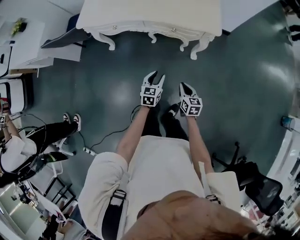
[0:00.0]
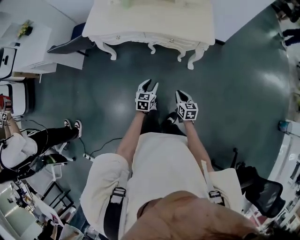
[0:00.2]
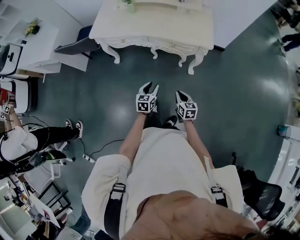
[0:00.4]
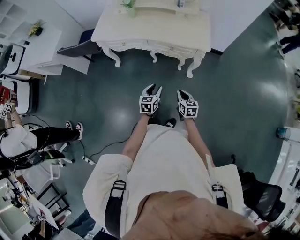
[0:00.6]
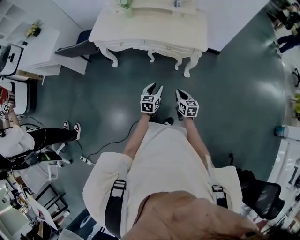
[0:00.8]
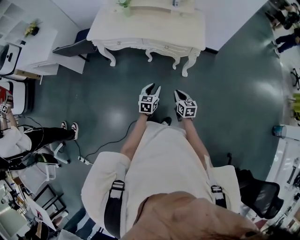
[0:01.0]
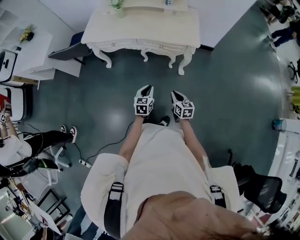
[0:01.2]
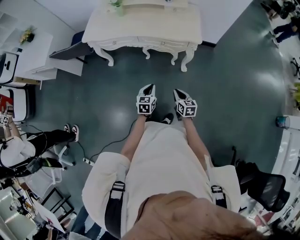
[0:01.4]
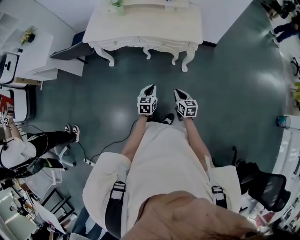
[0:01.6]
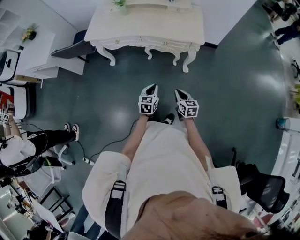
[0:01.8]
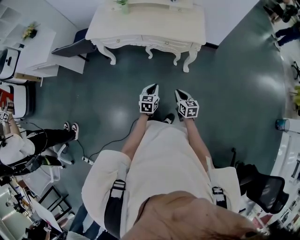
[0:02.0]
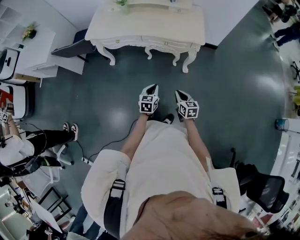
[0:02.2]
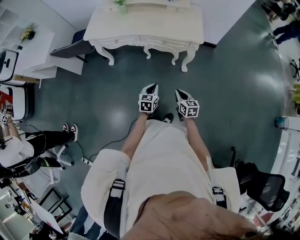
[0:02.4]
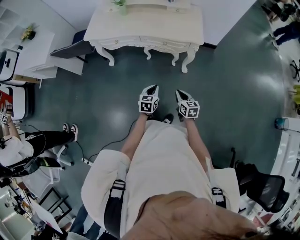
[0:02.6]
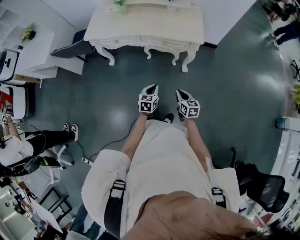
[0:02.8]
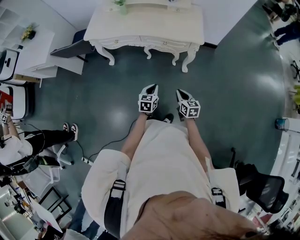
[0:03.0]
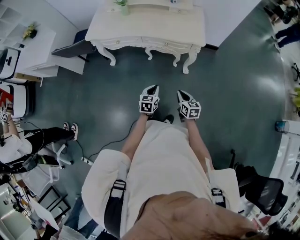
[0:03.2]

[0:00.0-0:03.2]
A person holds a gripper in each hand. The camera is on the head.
0:00.0 to 0:01.6: The grippers both shift upward and backward by roughly 10 cm. The left gripper closes.
0:01.6 to 0:03.2: There are only small adjustments of the grippers.

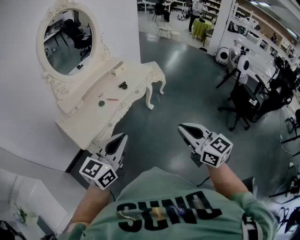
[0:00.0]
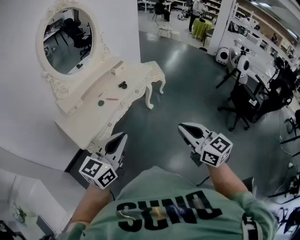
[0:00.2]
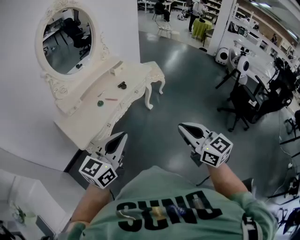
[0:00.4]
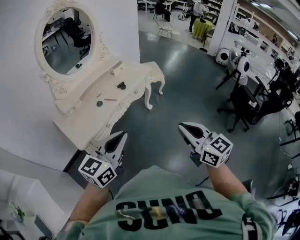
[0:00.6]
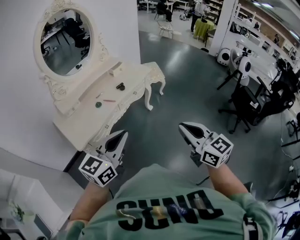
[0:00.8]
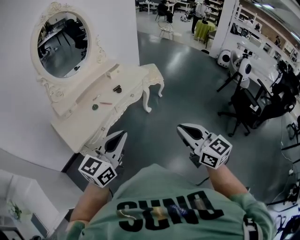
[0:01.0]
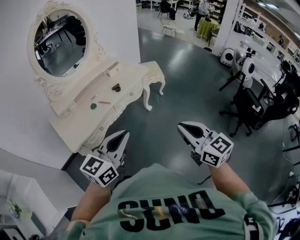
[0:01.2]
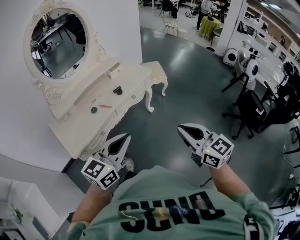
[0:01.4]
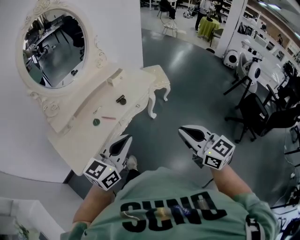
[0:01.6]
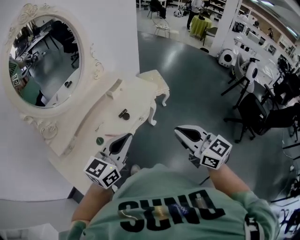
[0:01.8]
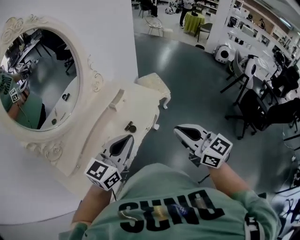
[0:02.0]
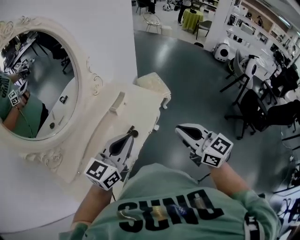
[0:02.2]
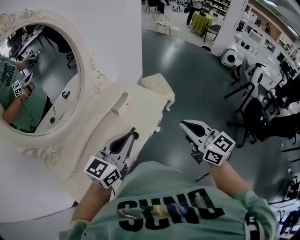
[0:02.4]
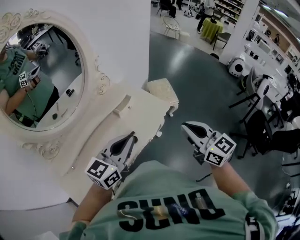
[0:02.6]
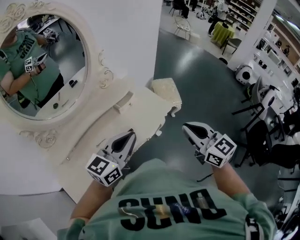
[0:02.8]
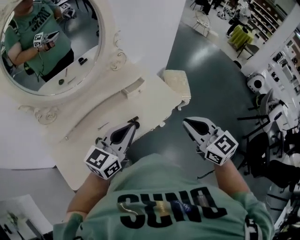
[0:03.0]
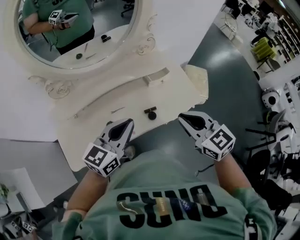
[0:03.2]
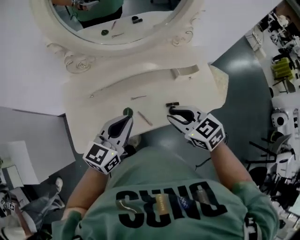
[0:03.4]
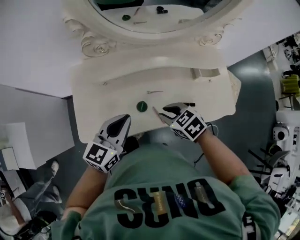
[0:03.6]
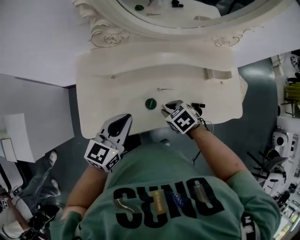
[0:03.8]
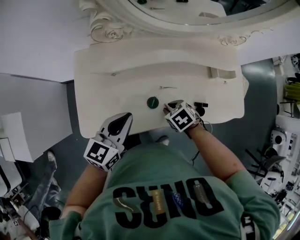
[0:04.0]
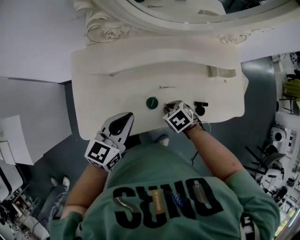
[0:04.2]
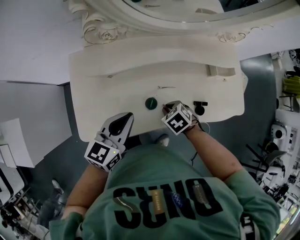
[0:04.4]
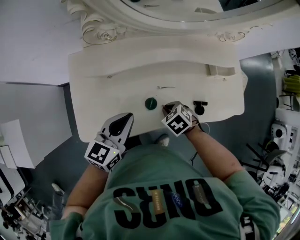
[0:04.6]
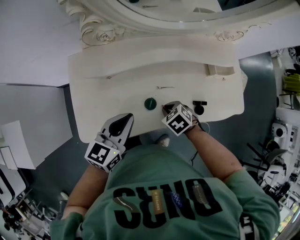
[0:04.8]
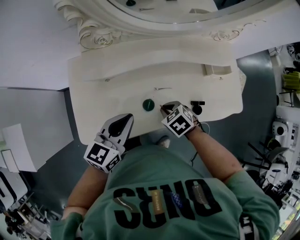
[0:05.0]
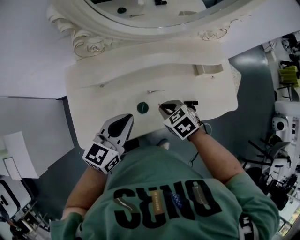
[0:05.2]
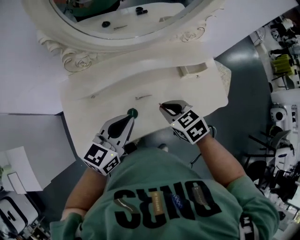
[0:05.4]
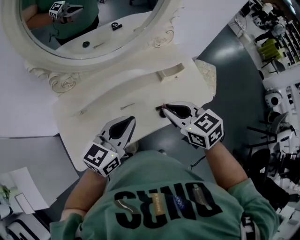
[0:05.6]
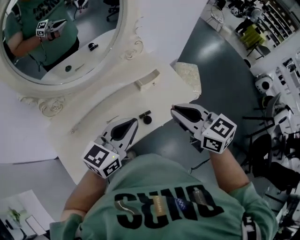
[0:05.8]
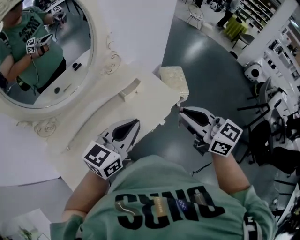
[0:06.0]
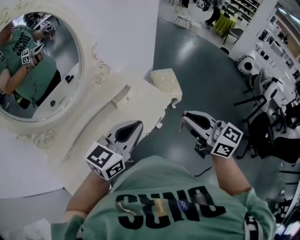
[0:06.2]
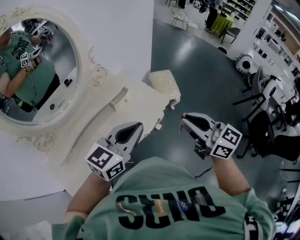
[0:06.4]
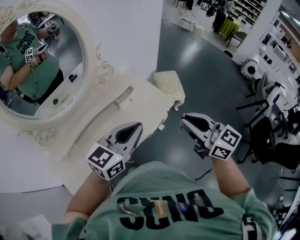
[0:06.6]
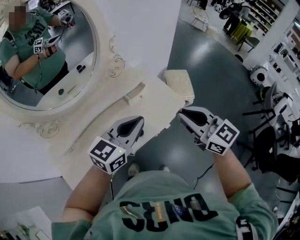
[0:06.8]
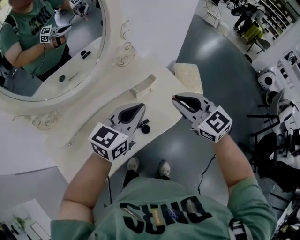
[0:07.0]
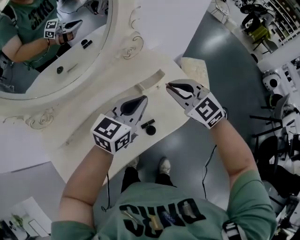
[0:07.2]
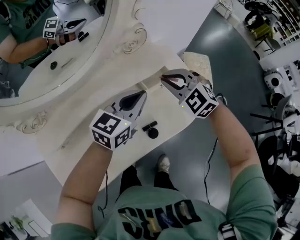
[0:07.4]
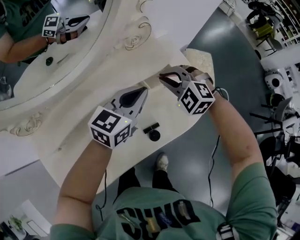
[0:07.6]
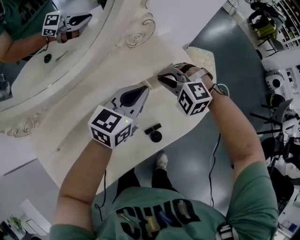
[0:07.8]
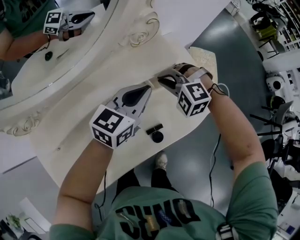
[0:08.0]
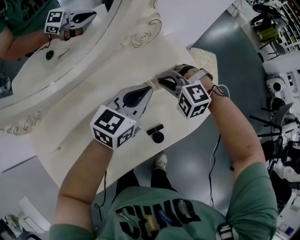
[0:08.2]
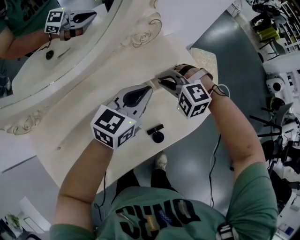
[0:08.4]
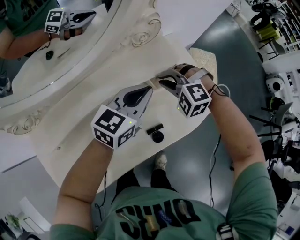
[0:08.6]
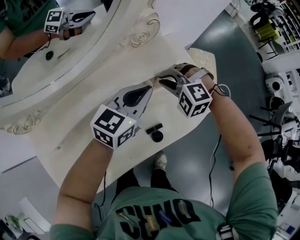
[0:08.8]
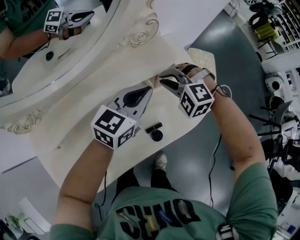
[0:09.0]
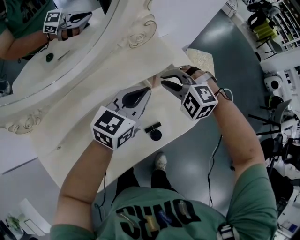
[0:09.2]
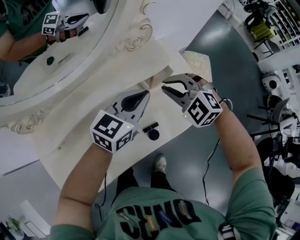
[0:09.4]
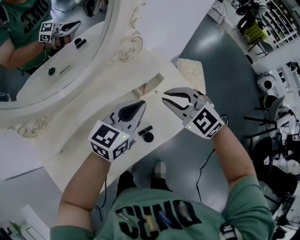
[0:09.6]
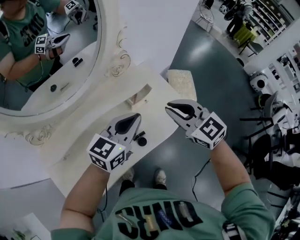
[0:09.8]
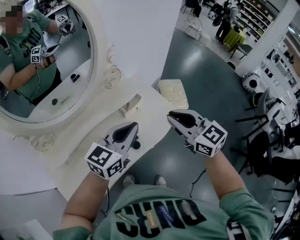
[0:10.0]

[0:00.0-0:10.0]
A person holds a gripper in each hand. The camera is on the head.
0:00.0 to 0:01.4: Both grippers travel together forward and to the right, roughly 15 cm.
0:01.4 to 0:02.8: Both grippers are carried forward, some 40 cm.
0:02.8 to 0:04.2: The right gripper heads downward, covering roughly 40 cm, and angles its fingers downward, by about 60 degrees. The left gripper moves some 40 cm, and changes its angle by approximately 50 degrees.
0:04.2 to 0:05.8: The left gripper shifts by approximately 30 cm, and turns by some 40 degrees. Meanwhile the right gripper goes some 35 cm upward, and tips its fingers upward by approximately 60 degrees.
0:05.8 to 0:07.2: Both grippers travel together forward and downward, roughly 20 cm. The right gripper changes its angle by approximately 30 degrees.
0:07.2 to 0:08.6: The right gripper moves downward and forward, some 15 cm, and twists roughly 40 degrees counterclockwise, seen from behind, while the left gripper shifts about 10 cm downward and forward.
0:08.6 to 0:10.0: The left gripper goes roughly 25 cm upward and backward. Meanwhile the right gripper goes approximately 35 cm upward, backward and to the right, and rotates around the line of its fingers by about 70 degrees, clockwise from behind.

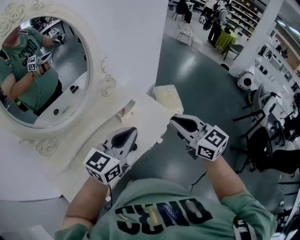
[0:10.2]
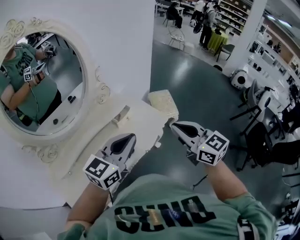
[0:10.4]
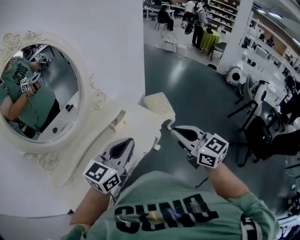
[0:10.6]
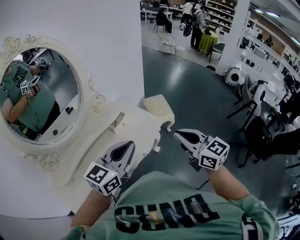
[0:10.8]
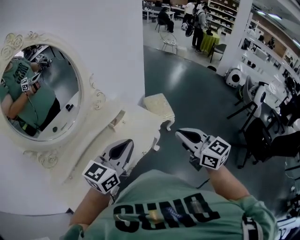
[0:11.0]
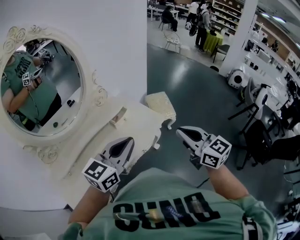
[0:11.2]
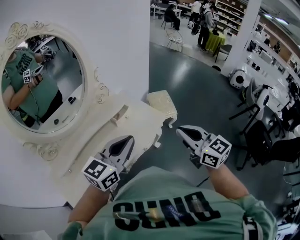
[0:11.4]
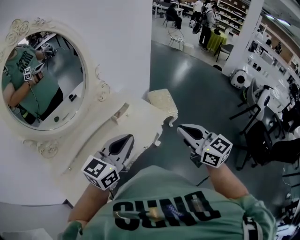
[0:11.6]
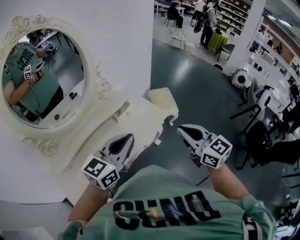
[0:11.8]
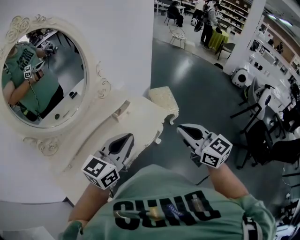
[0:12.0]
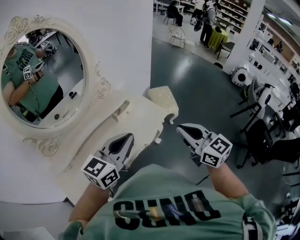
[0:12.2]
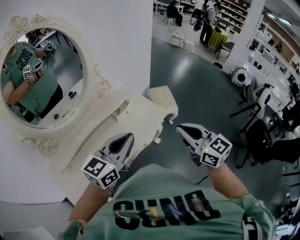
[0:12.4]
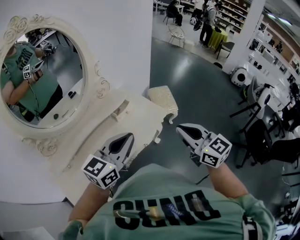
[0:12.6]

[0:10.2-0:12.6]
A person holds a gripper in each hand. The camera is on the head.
0:10.2 to 0:11.4: The right gripper is displaced backward and to the right by approximately 10 cm, while the left gripper moves backward, some 5 cm.
0:11.4 to 0:12.6: The two grippers keep their place.

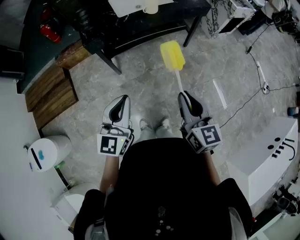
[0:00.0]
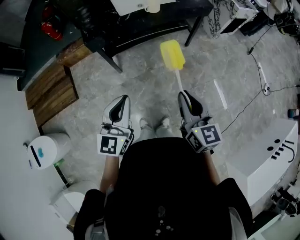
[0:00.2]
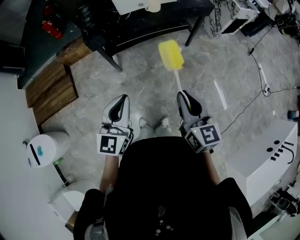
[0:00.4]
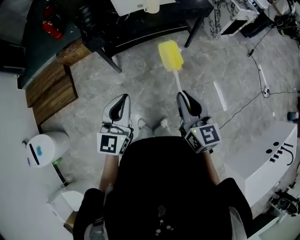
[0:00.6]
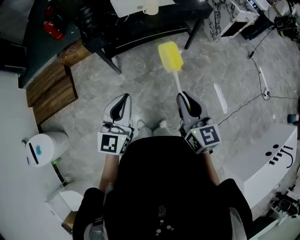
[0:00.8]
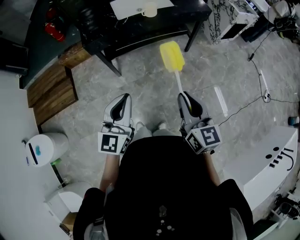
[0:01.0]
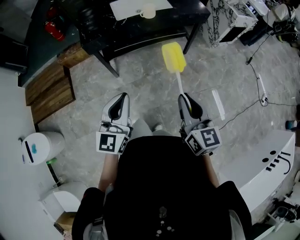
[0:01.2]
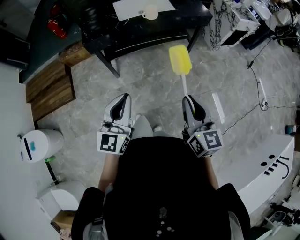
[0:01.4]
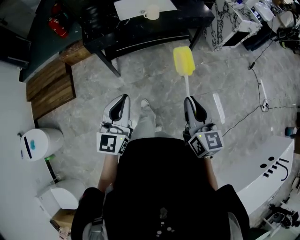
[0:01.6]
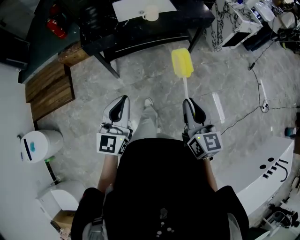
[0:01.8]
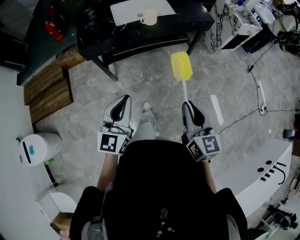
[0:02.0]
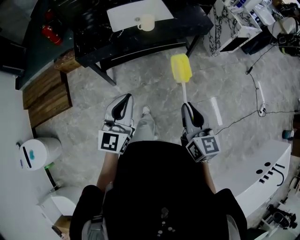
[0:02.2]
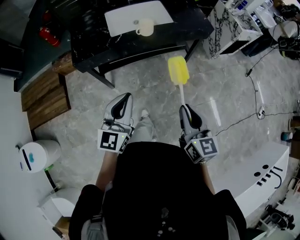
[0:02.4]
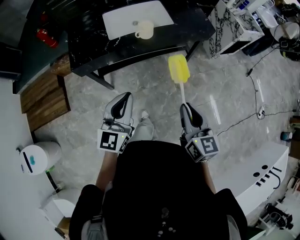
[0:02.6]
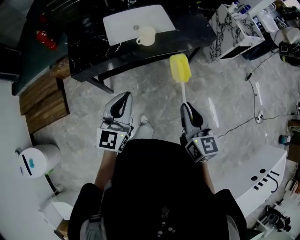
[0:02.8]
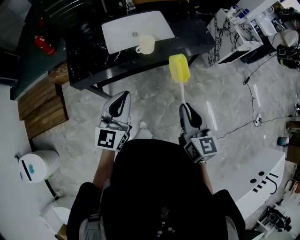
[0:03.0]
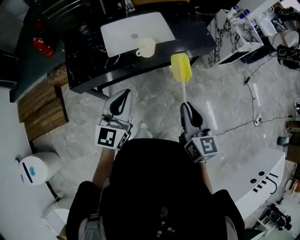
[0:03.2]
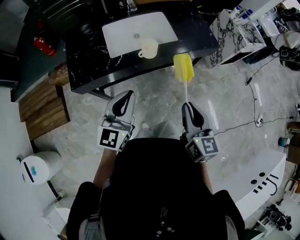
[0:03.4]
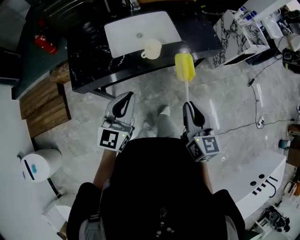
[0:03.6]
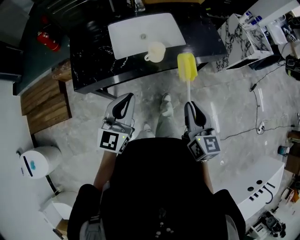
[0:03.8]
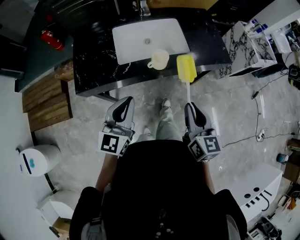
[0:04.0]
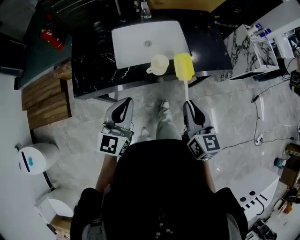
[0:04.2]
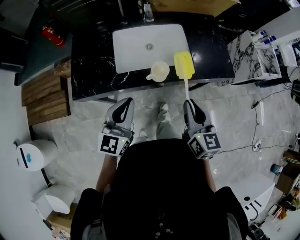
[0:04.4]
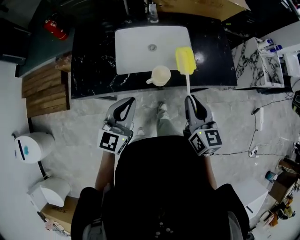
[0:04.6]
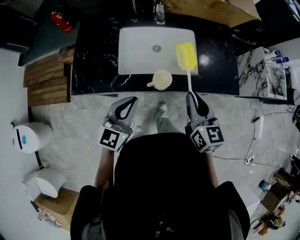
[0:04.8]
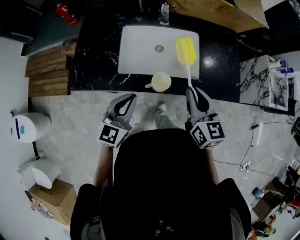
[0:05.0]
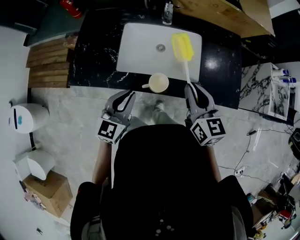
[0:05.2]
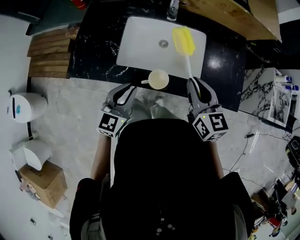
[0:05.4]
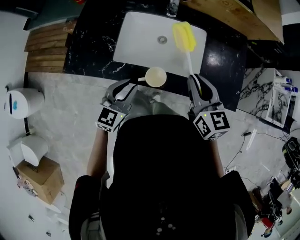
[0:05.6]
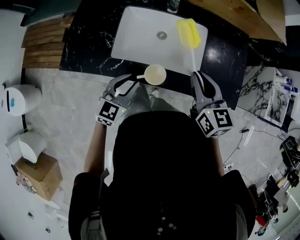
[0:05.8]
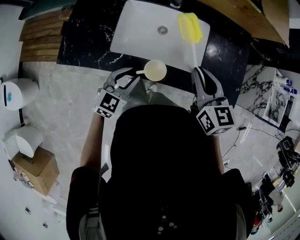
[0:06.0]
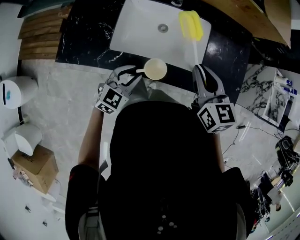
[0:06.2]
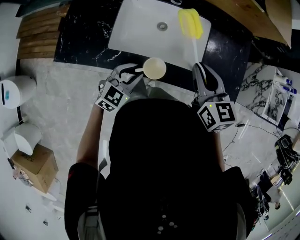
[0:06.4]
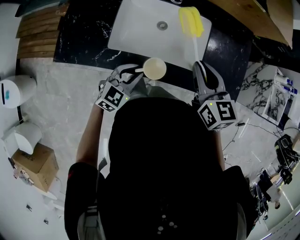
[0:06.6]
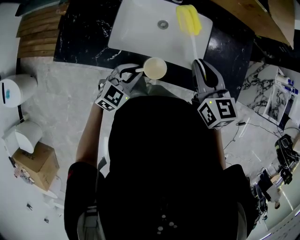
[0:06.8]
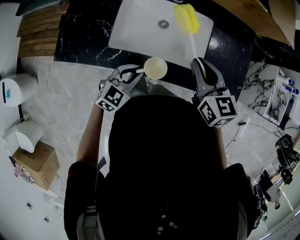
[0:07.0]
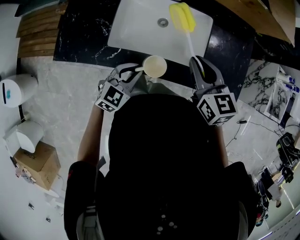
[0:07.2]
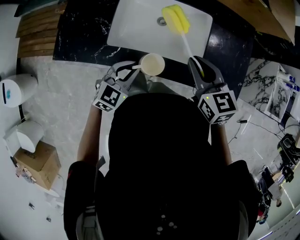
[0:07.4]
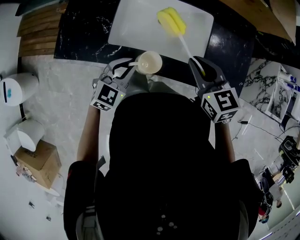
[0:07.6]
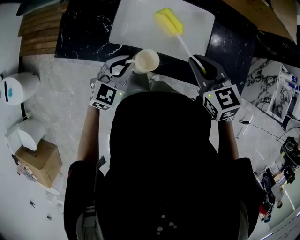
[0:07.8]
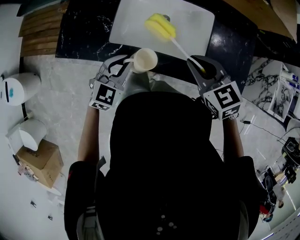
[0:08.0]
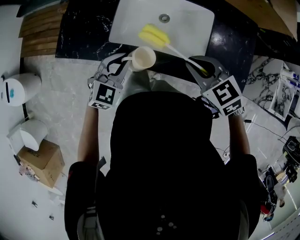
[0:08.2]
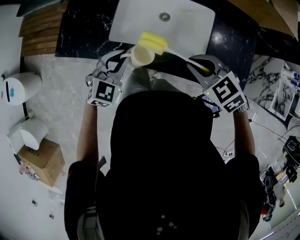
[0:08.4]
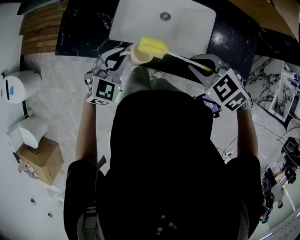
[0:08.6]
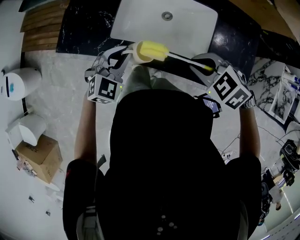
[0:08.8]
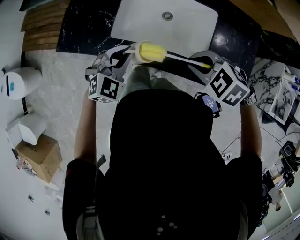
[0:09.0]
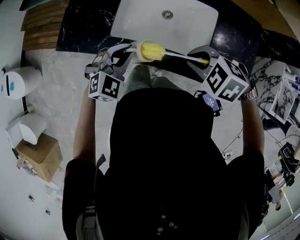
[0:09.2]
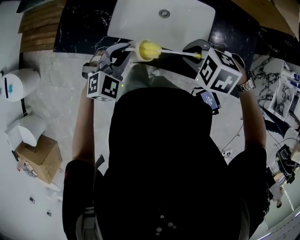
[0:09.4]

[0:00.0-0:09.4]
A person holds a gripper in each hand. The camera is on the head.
0:00.0 to 0:01.6: Both grippers move to the right, approximately 10 cm.
0:01.6 to 0:03.2: Both grippers move forward, some 30 cm.
0:03.2 to 0:04.8: The left gripper moves forward, some 15 cm, while the right gripper shifts approximately 30 cm forward.
0:04.8 to 0:06.2: The right gripper heads forward, covering approximately 10 cm, while the left gripper is displaced downward and forward by some 15 cm, turns by approximately 20 degrees, and opens.
0:06.2 to 0:07.8: The right gripper changes its angle by about 20 degrees.
0:07.8 to 0:09.4: The right gripper shifts by roughly 5 cm, and points its fingers about 40 degrees further downward; the left gripper changes its angle by about 20 degrees.
